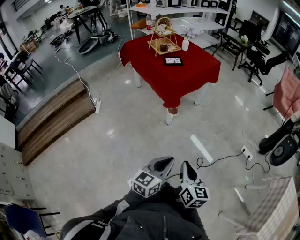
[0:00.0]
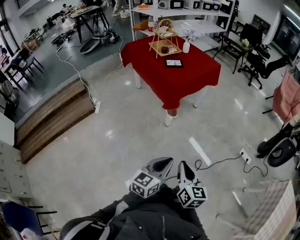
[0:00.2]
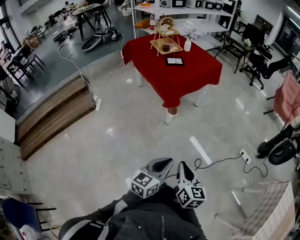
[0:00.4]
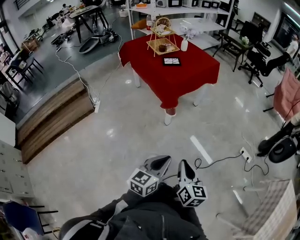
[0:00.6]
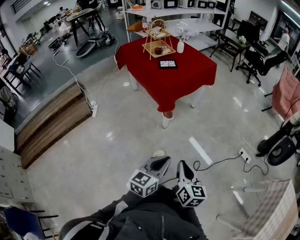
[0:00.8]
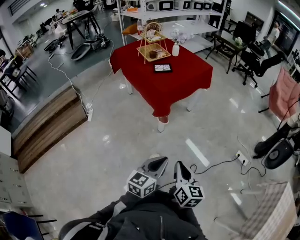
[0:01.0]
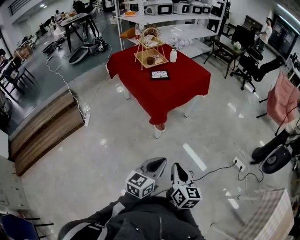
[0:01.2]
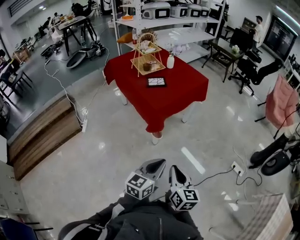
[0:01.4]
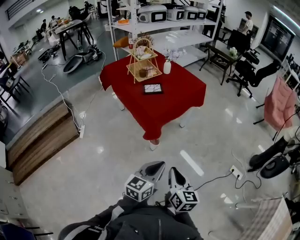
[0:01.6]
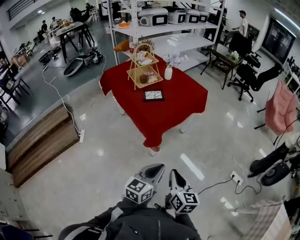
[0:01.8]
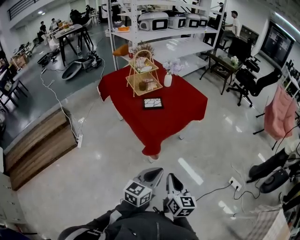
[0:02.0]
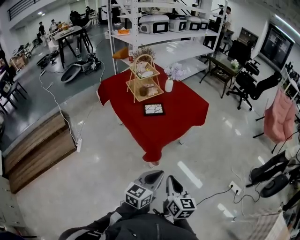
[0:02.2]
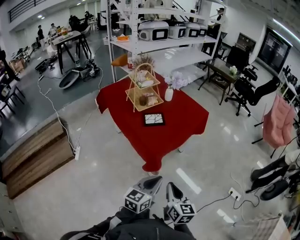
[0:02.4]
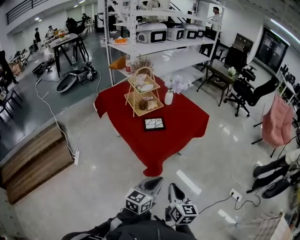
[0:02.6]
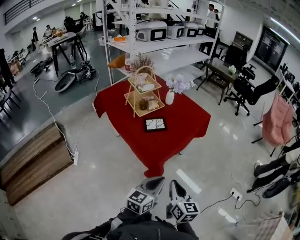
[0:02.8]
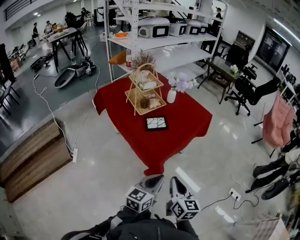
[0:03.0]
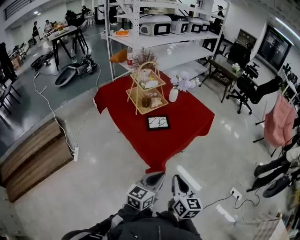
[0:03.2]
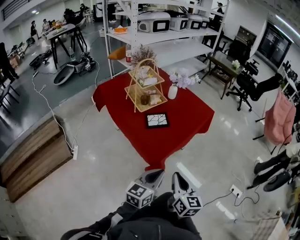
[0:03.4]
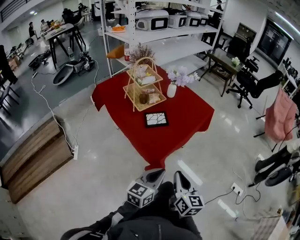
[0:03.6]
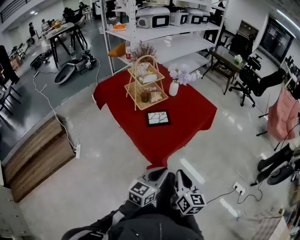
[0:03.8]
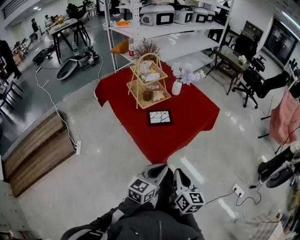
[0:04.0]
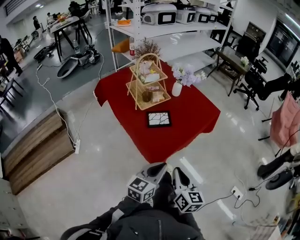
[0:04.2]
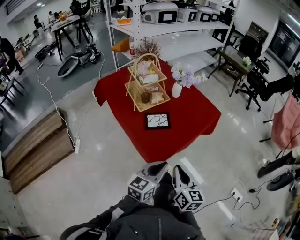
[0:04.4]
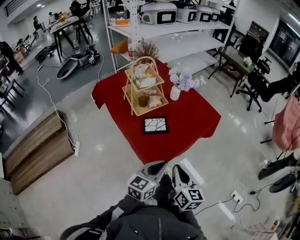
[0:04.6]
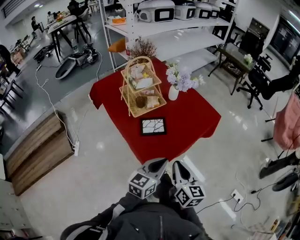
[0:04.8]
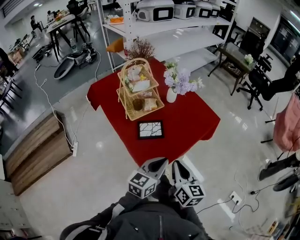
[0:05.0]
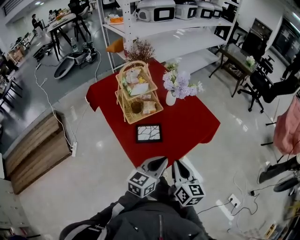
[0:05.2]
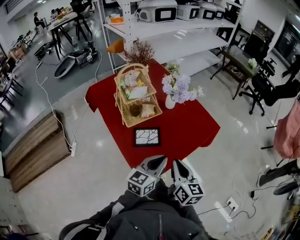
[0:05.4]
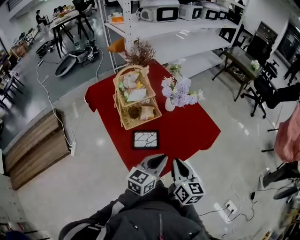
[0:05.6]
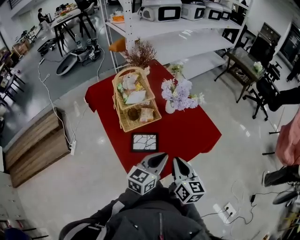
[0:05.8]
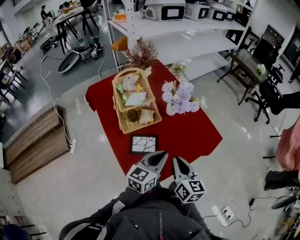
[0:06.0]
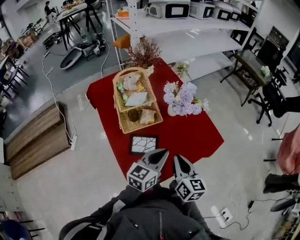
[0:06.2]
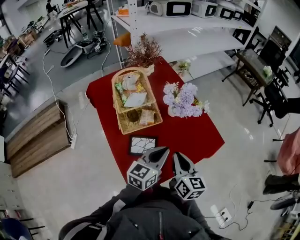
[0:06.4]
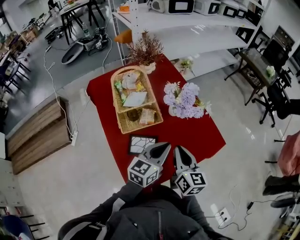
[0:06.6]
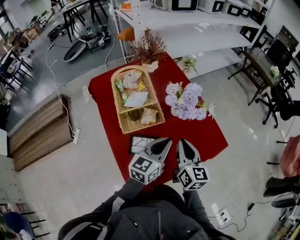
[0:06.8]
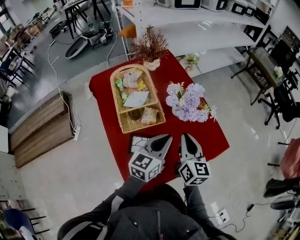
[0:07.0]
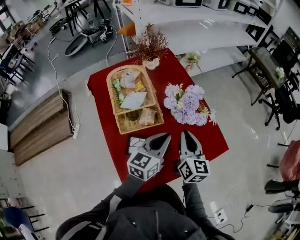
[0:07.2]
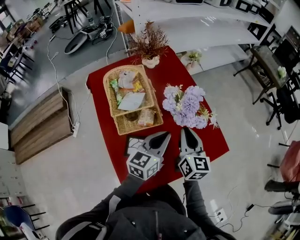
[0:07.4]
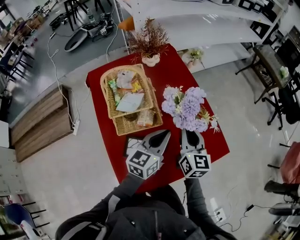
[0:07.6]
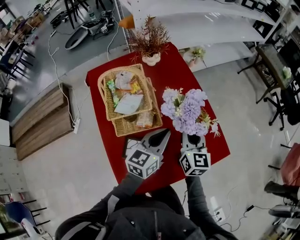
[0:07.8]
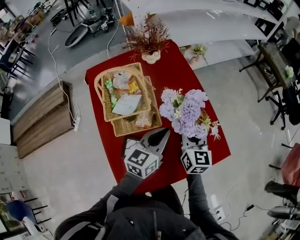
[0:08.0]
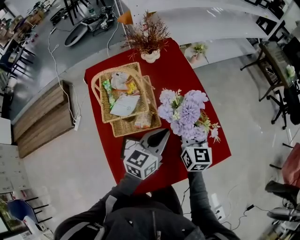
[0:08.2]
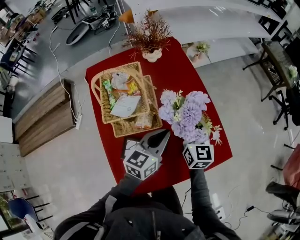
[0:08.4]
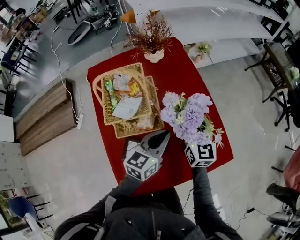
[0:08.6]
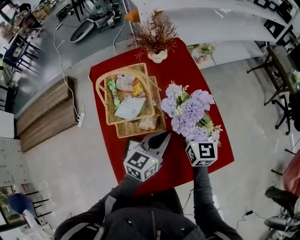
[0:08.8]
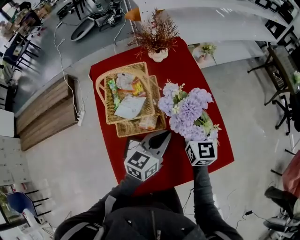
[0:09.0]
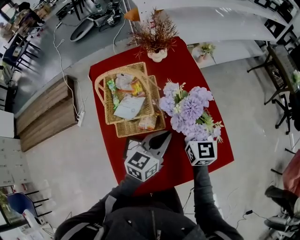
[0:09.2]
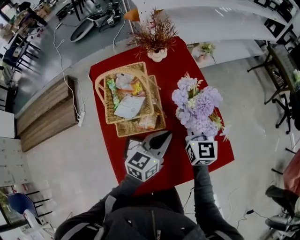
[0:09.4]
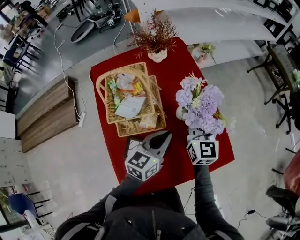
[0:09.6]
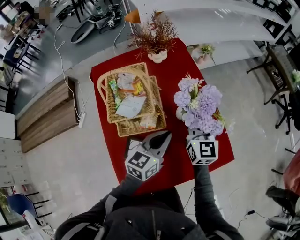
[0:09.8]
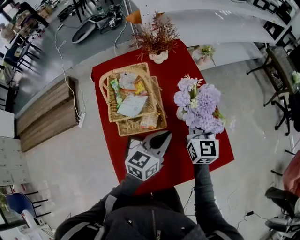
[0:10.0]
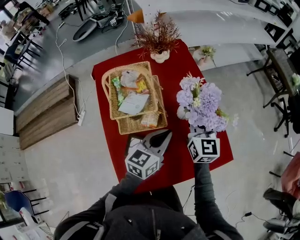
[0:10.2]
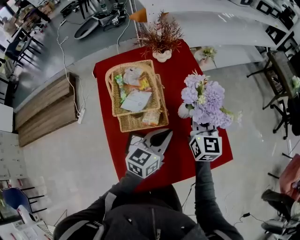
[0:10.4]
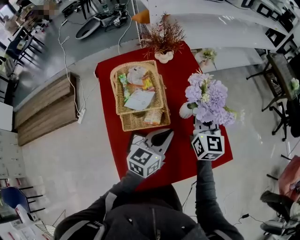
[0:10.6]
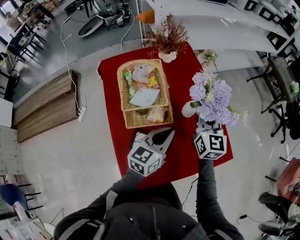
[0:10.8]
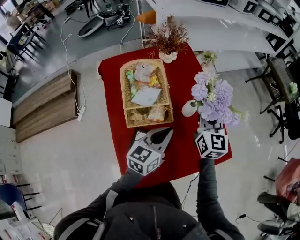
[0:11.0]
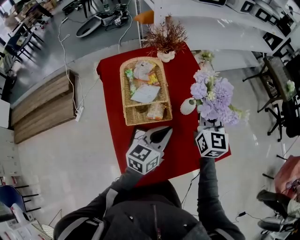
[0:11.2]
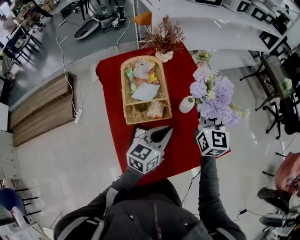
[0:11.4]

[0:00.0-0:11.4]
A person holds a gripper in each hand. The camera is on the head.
0:00.0 to 0:01.4: Both grippers move forward, approximately 15 cm.
0:01.4 to 0:02.8: Both grippers travel together forward and to the left, about 25 cm.
0:02.8 to 0:04.2: Both grippers move forward, about 10 cm.
0:04.2 to 0:05.6: Both grippers travel together forward, roughly 20 cm.
0:05.6 to 0:07.2: The grippers both shift forward by roughly 20 cm.
0:07.2 to 0:08.6: The left gripper goes approximately 5 cm forward. The right gripper shifts approximately 10 cm forward, and opens.
0:08.6 to 0:10.0: The right gripper closes up.
0:10.0 to 0:11.4: The right gripper heads upward, covering about 5 cm; the left gripper changes place by about 5 cm.

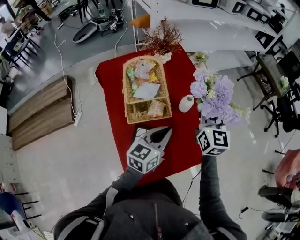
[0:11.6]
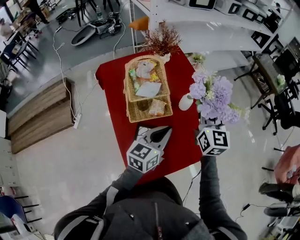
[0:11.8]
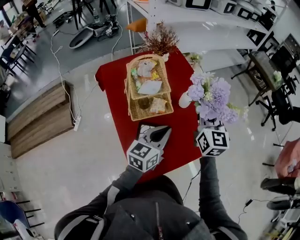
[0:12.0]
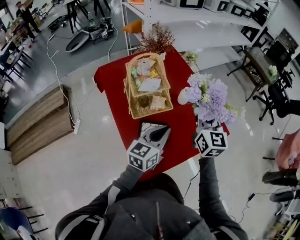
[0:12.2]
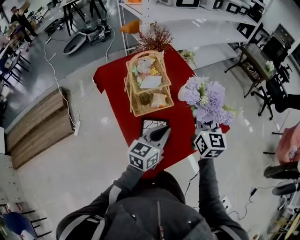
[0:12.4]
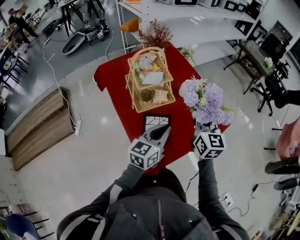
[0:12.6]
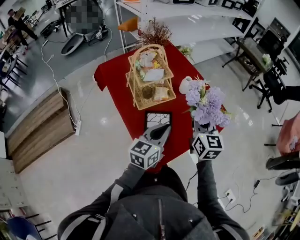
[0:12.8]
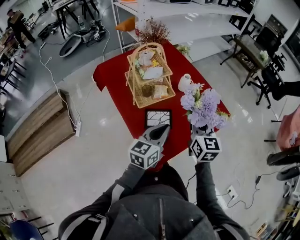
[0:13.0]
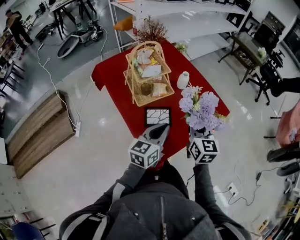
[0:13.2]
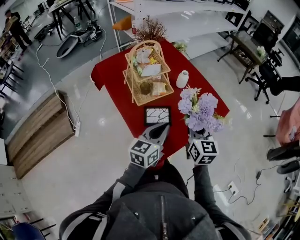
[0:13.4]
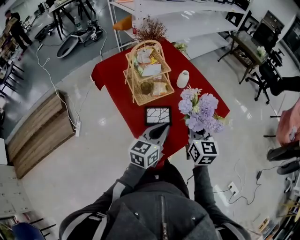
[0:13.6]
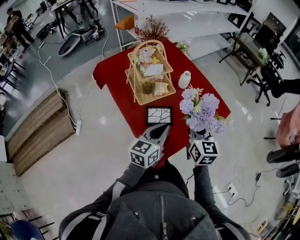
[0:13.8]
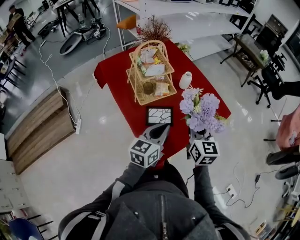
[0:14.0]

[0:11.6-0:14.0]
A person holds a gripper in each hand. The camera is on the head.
0:11.6 to 0:12.8: Both grippers move backward, approximately 15 cm.
0:12.8 to 0:14.0: The right gripper shifts about 5 cm backward.

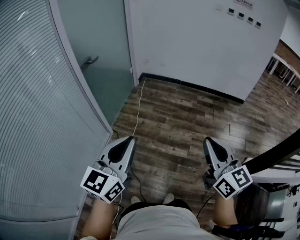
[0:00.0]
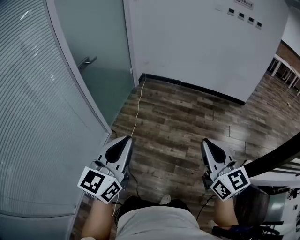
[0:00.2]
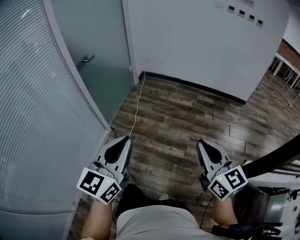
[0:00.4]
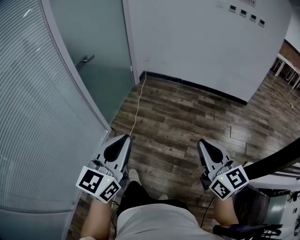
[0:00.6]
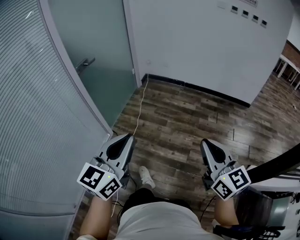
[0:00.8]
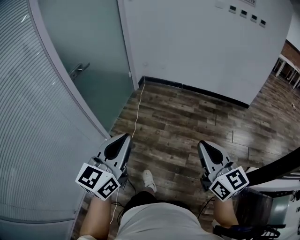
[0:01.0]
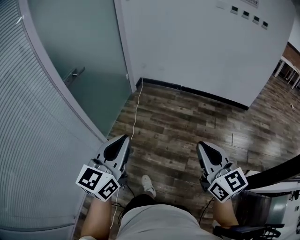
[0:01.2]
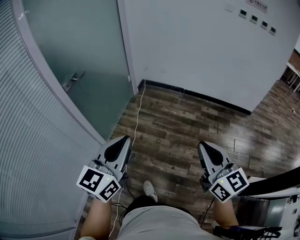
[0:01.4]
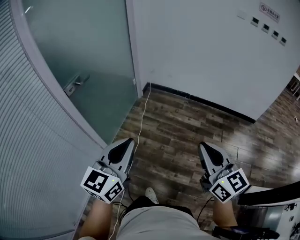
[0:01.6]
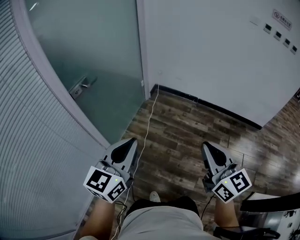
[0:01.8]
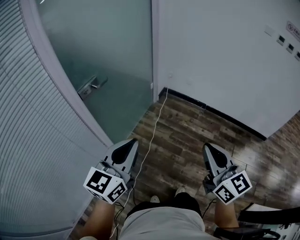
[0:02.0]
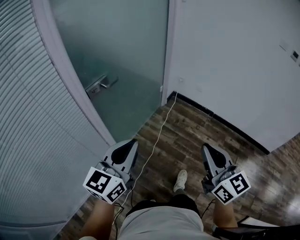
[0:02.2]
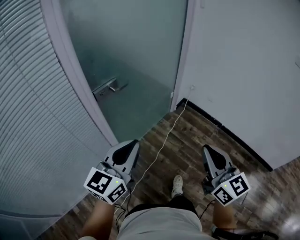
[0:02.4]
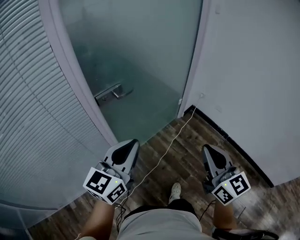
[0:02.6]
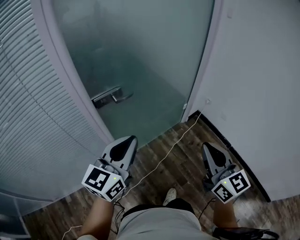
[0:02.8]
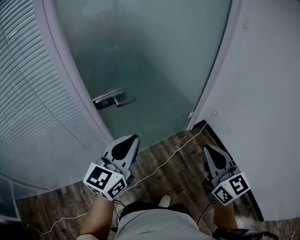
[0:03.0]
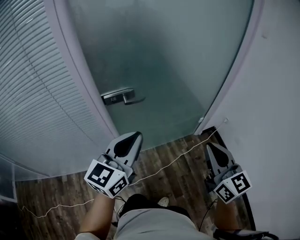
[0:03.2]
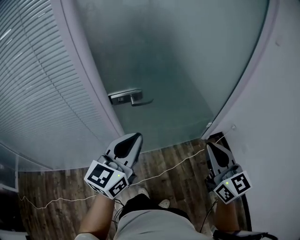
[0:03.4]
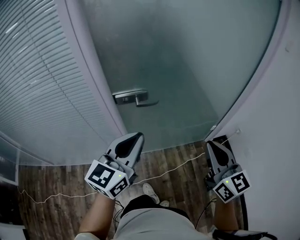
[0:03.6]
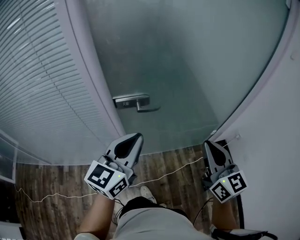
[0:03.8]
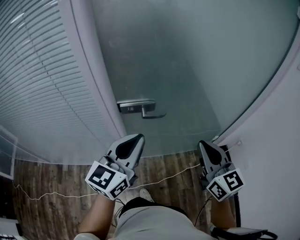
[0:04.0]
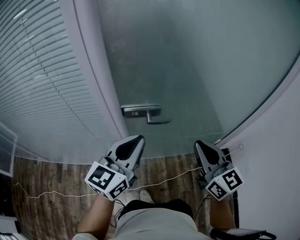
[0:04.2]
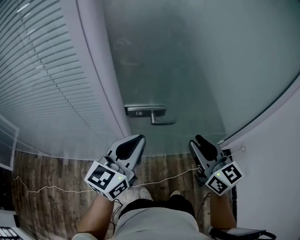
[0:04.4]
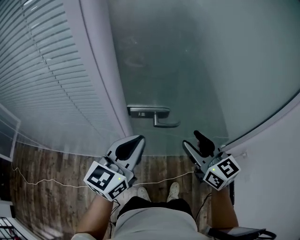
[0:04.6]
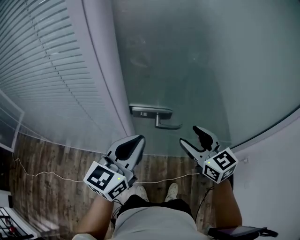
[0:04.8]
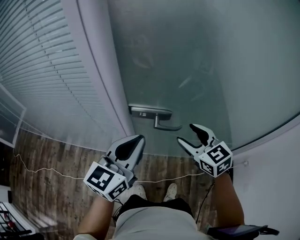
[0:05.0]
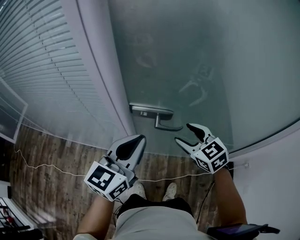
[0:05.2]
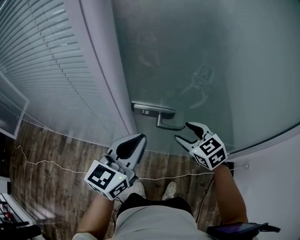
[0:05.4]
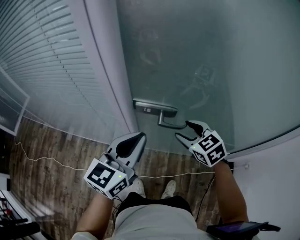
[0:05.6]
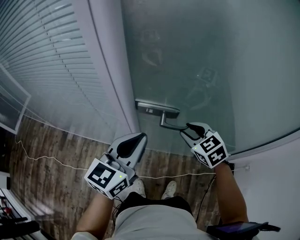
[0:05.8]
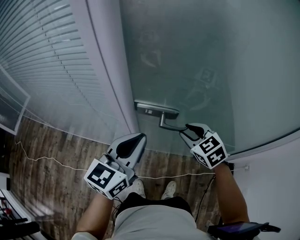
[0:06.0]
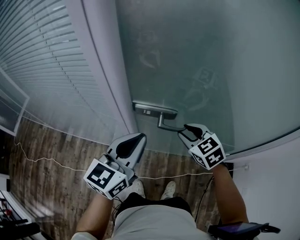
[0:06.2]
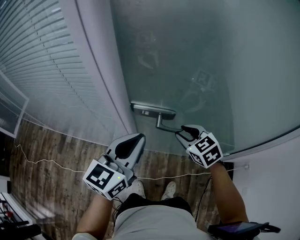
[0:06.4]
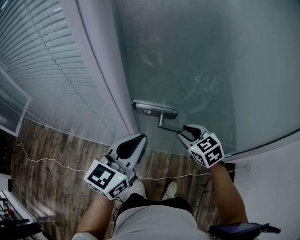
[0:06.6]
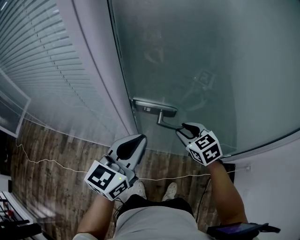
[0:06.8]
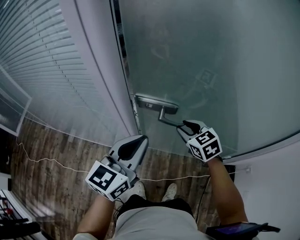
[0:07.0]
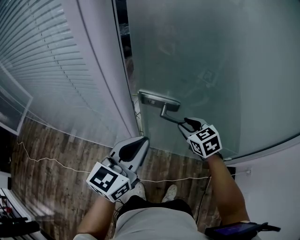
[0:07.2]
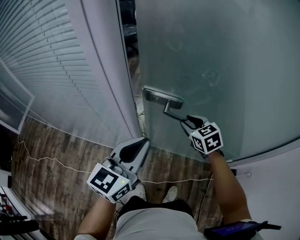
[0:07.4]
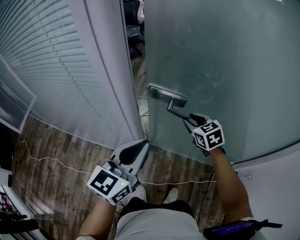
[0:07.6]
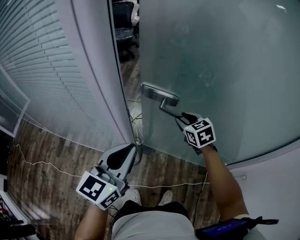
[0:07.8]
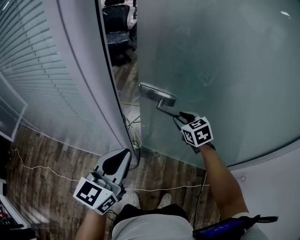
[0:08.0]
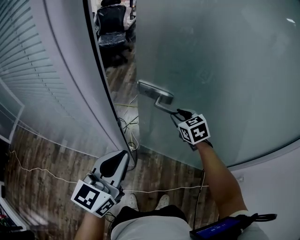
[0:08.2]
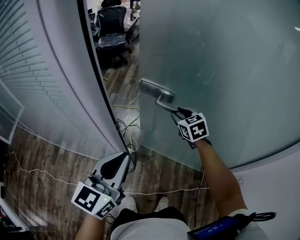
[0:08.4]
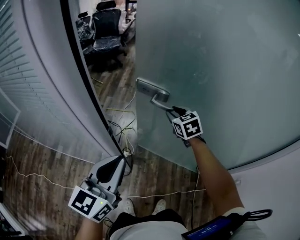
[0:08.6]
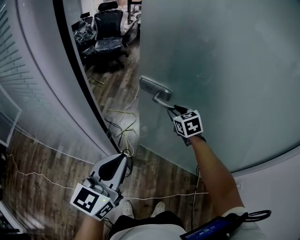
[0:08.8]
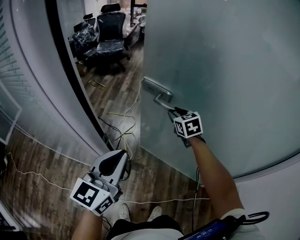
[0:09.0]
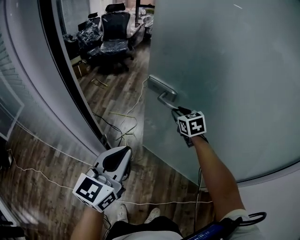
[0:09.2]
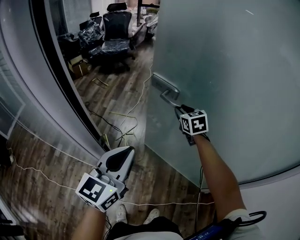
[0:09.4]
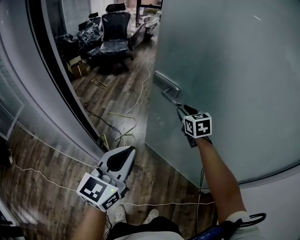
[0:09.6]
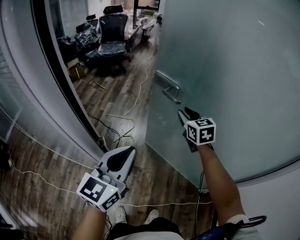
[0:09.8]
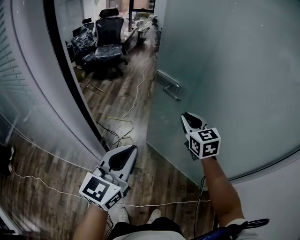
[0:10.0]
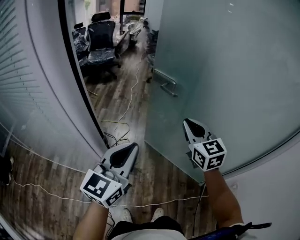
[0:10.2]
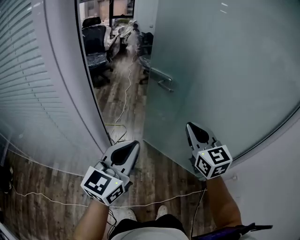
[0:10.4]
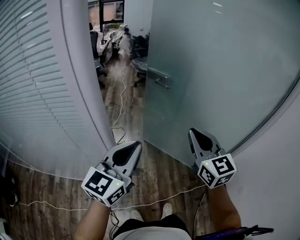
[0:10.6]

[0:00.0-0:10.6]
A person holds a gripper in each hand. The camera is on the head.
0:00.0 to 0:01.6: The grippers both shift forward by approximately 30 cm.
0:01.6 to 0:03.0: The right gripper moves roughly 50 cm, and swivels about 40 degrees. The left gripper ends up about 35 cm from where it was, and turns by roughly 40 degrees.
0:03.0 to 0:04.6: The right gripper moves roughly 35 cm, changes its angle by some 40 degrees, and opens up; the left gripper moves approximately 20 cm, and rotates some 20 degrees.
0:04.6 to 0:06.0: The right gripper heads downward and forward, covering about 15 cm, and angles its fingers downward, by approximately 30 degrees.
0:06.0 to 0:07.6: The right gripper travels forward by approximately 10 cm.
0:07.6 to 0:09.0: The left gripper moves forward, roughly 5 cm; the right gripper is displaced forward by approximately 15 cm.
0:09.0 to 0:10.6: The right gripper moves backward and upward, approximately 35 cm, swivels approximately 30 degrees, and closes up, while the left gripper travels backward and upward by roughly 10 cm, and swivels roughly 20 degrees.
